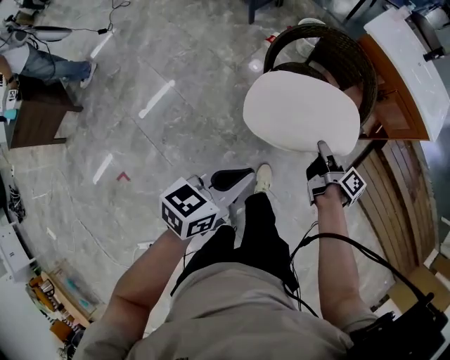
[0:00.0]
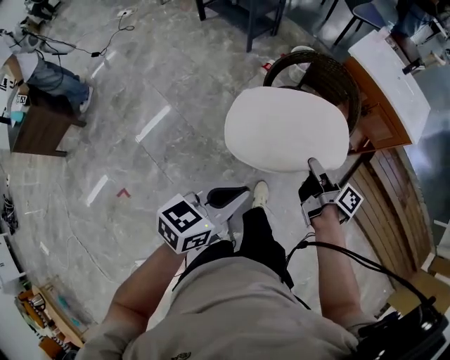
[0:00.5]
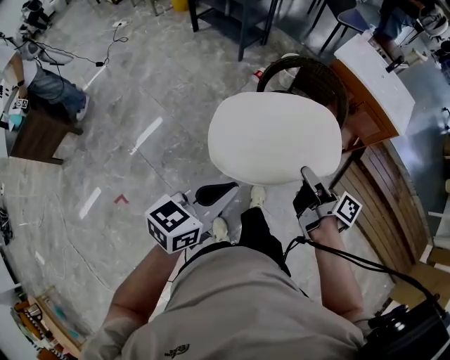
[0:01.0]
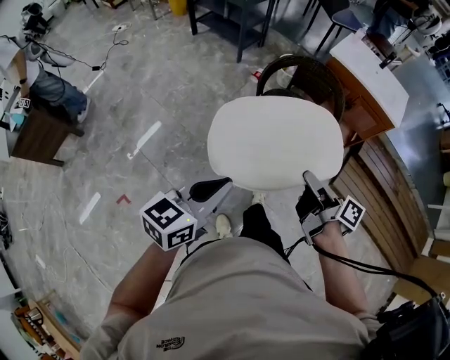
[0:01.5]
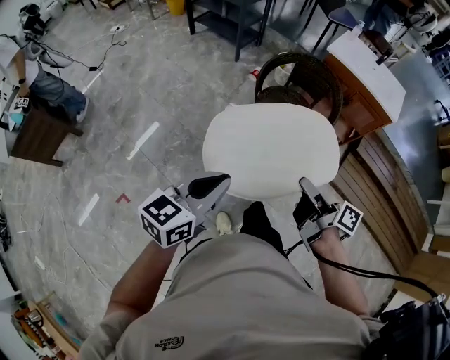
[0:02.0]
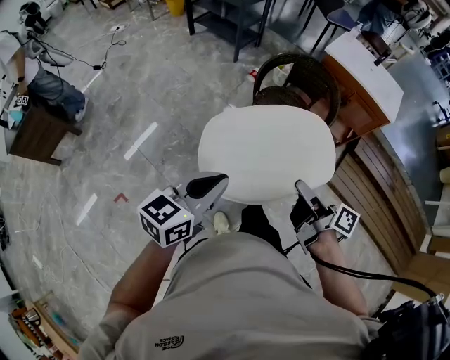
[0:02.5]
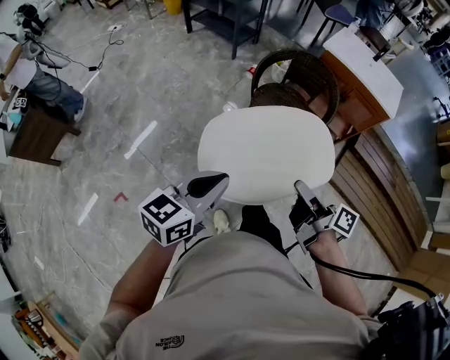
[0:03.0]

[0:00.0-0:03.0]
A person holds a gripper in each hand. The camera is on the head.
0:00.0 to 0:01.5: The right gripper shifts some 35 cm backward and upward. The left gripper travels backward, upward and to the left by roughly 25 cm.
0:01.5 to 0:03.0: The grippers move only a little.

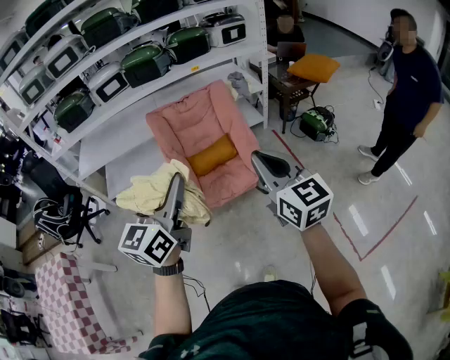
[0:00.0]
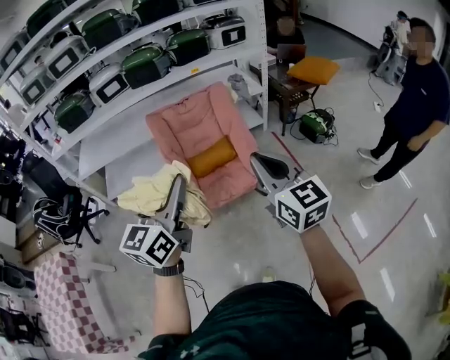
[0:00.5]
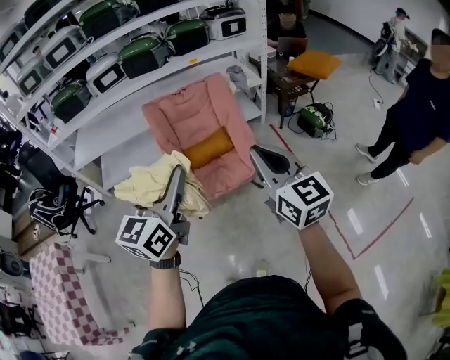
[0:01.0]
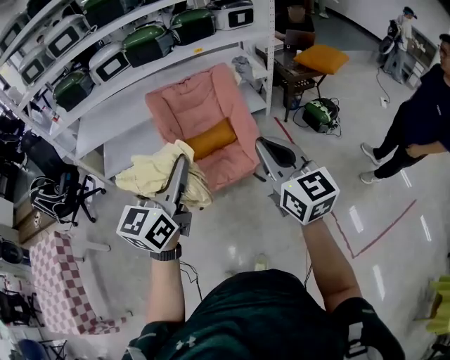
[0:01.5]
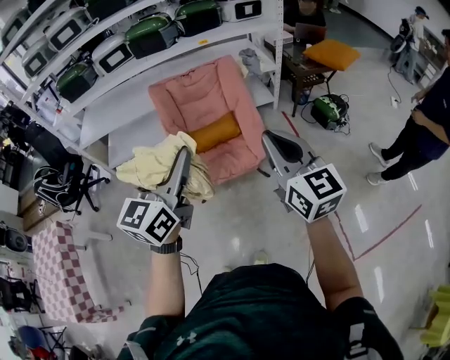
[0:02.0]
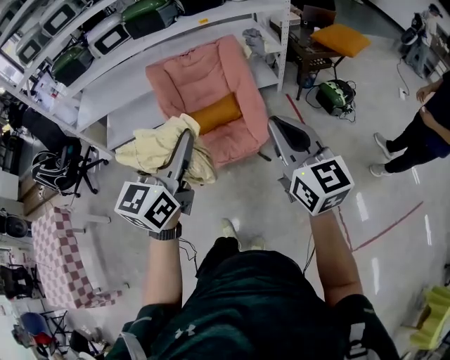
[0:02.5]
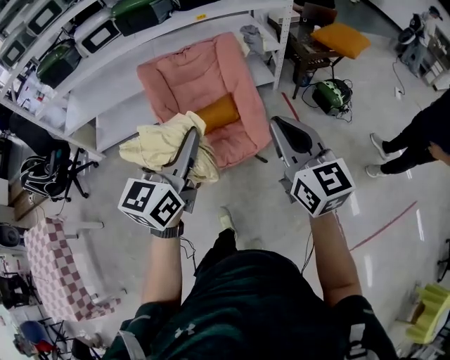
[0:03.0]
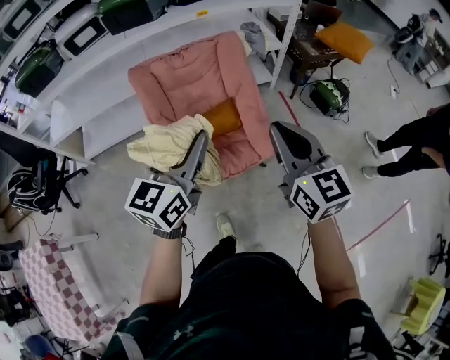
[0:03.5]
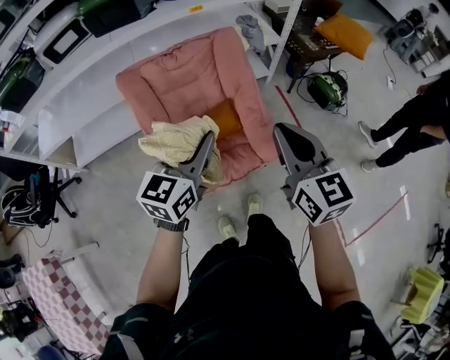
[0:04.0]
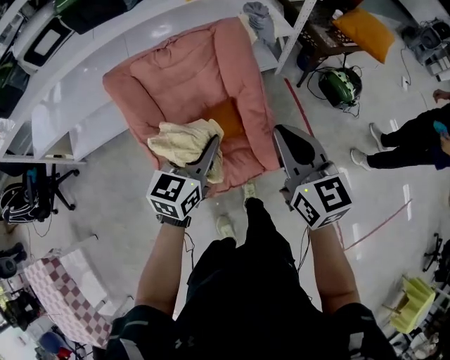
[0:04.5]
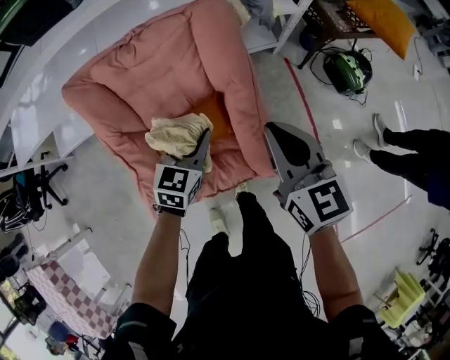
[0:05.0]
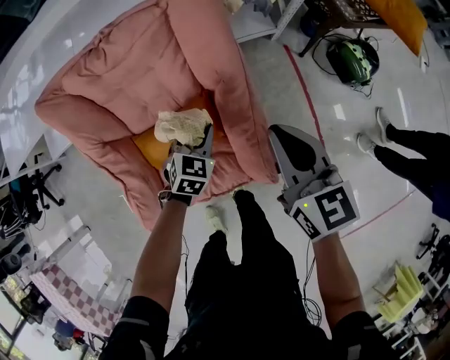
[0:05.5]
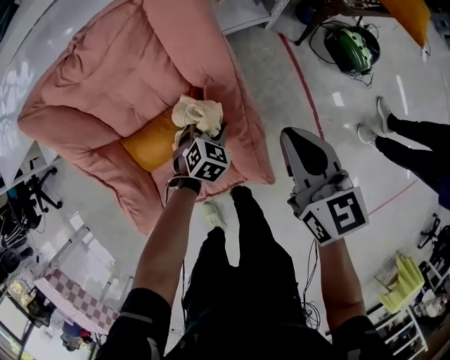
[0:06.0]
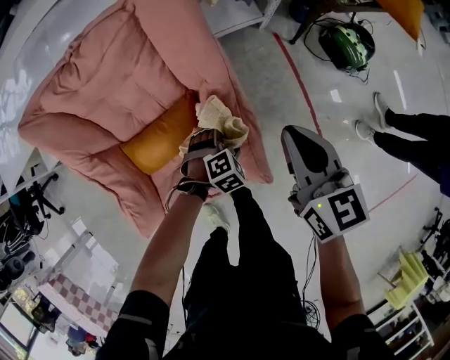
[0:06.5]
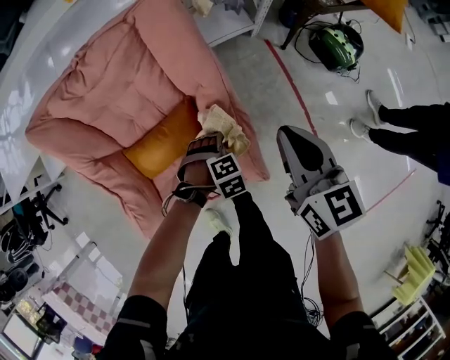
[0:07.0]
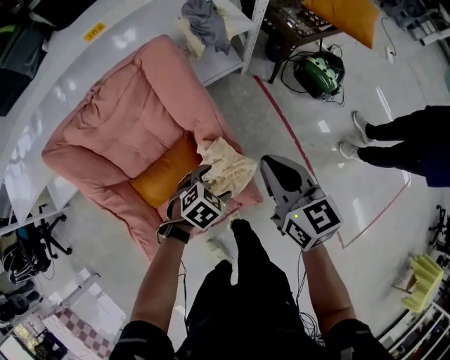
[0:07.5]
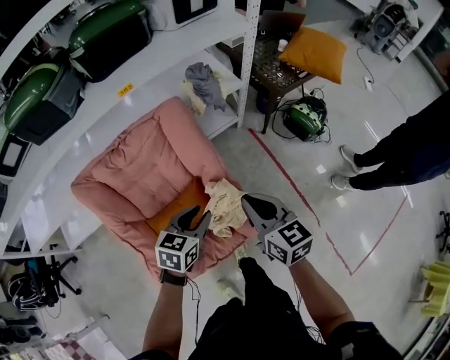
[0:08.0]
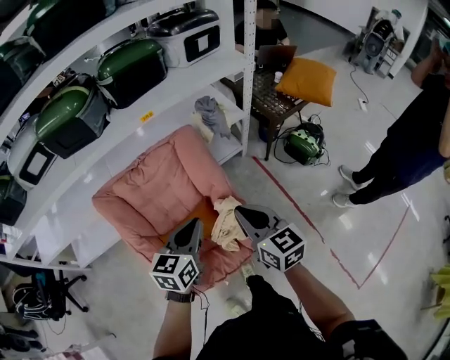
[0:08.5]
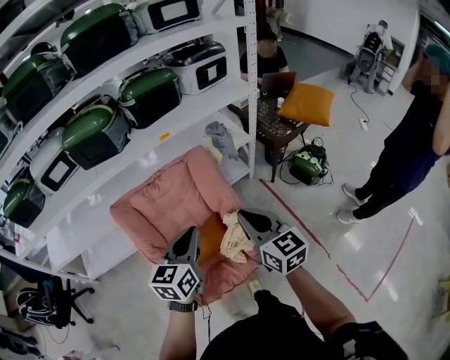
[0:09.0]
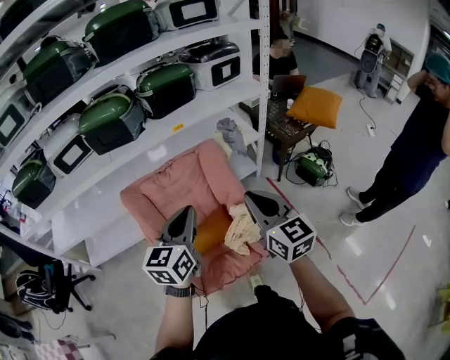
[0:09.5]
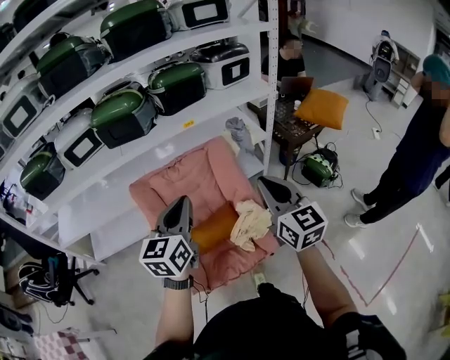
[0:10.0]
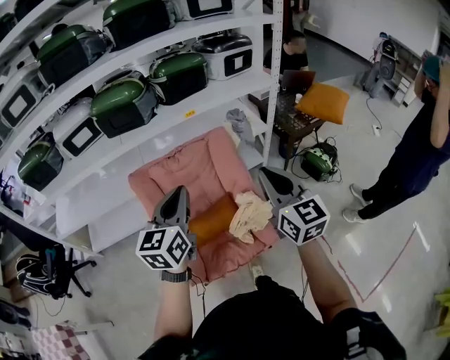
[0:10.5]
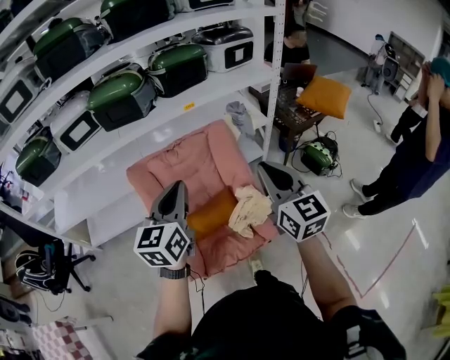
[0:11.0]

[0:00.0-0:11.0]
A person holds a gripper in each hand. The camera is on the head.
0:00.0 to 0:02.0: The two grippers go approximately 5 cm to the right.
0:02.0 to 0:03.5: The two grippers go approximately 25 cm forward.
0:03.5 to 0:05.5: The right gripper travels forward and downward by approximately 50 cm. Meanwhile the left gripper shifts about 60 cm downward and forward, and tips its fingers downward by about 40 degrees.
0:05.5 to 0:07.5: The left gripper reaches roughly 10 cm downward, then returns, rotates roughly 40 degrees, and opens up; the right gripper ends up about 5 cm from where it was.
0:07.5 to 0:09.0: The right gripper goes some 25 cm upward, backward and to the left. The left gripper moves upward, about 40 cm, points its fingers some 50 degrees further upward, and closes its fingers.
0:09.0 to 0:11.0: The left gripper is displaced upward and to the left by some 10 cm. Meanwhile the right gripper travels upward by approximately 10 cm.

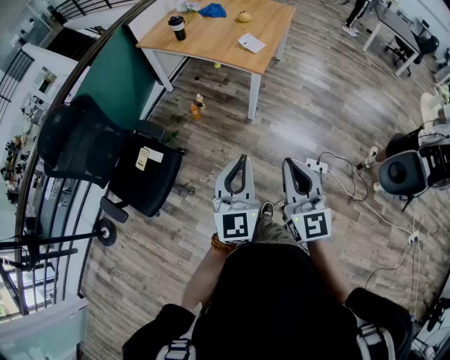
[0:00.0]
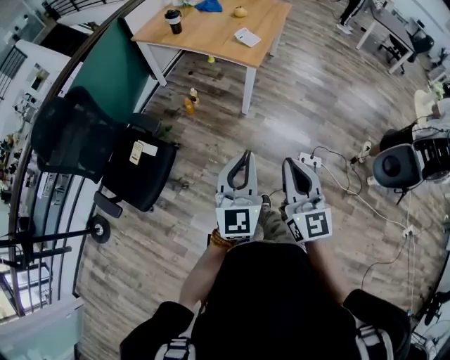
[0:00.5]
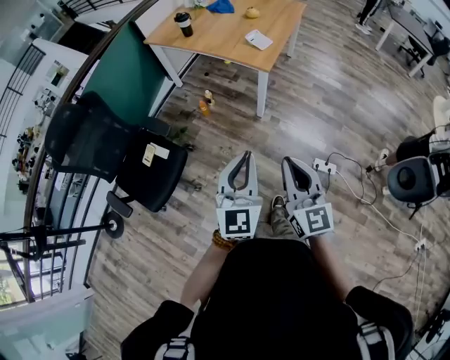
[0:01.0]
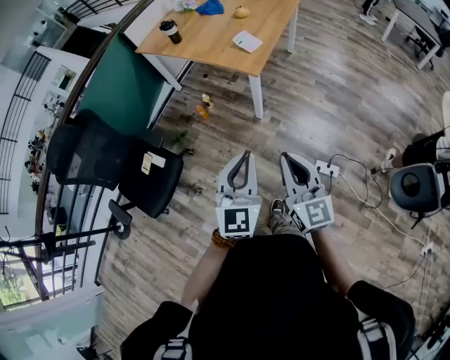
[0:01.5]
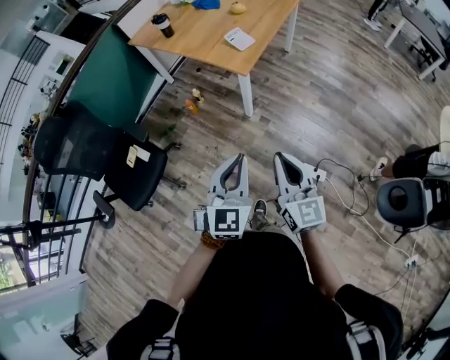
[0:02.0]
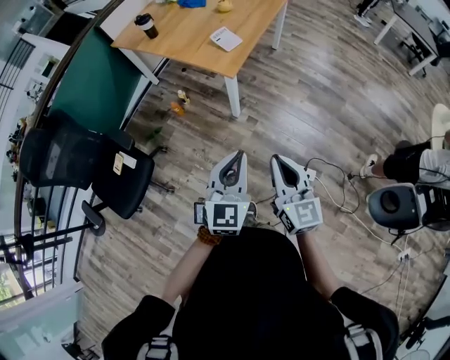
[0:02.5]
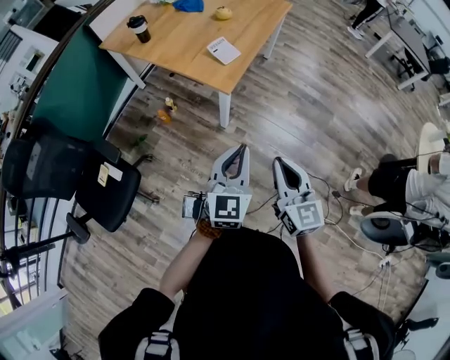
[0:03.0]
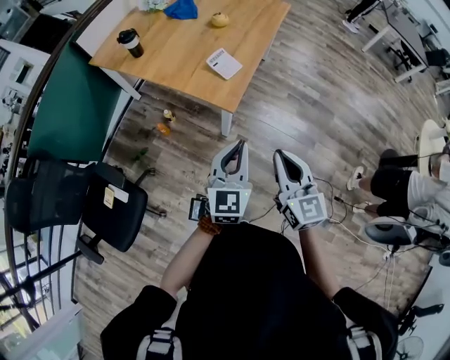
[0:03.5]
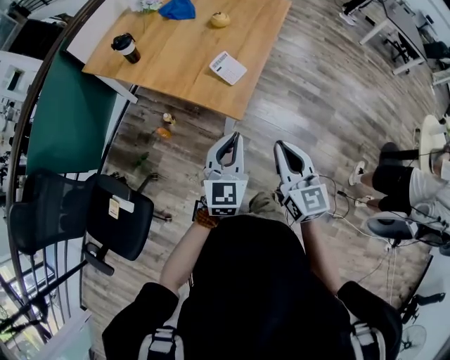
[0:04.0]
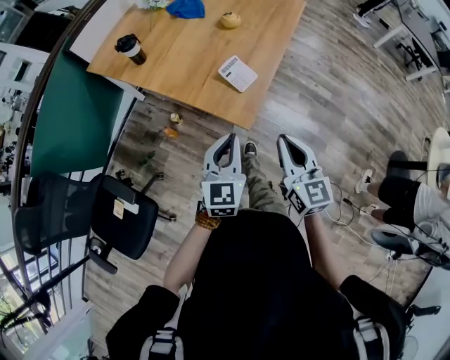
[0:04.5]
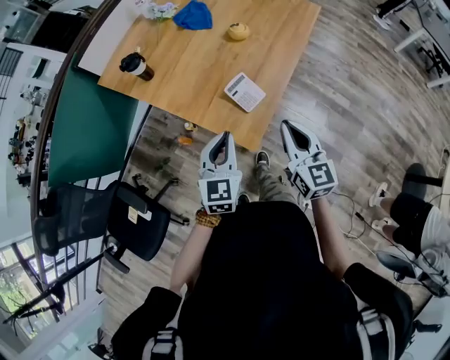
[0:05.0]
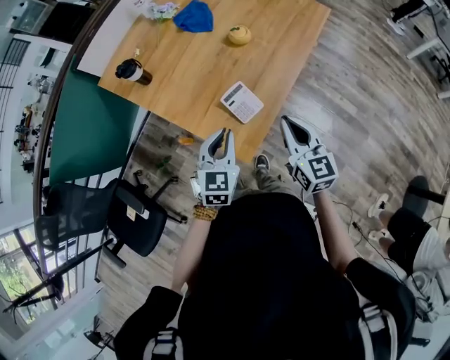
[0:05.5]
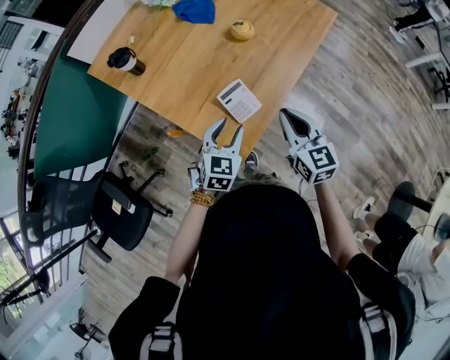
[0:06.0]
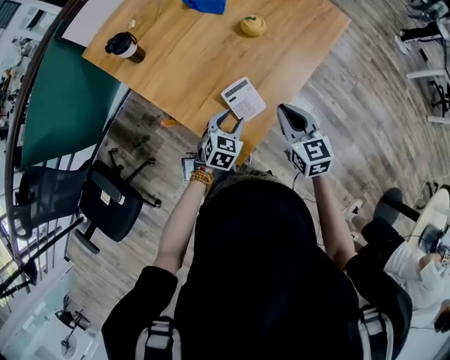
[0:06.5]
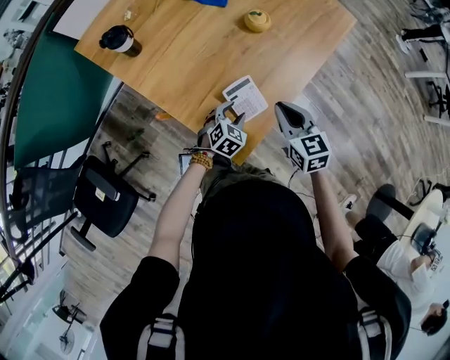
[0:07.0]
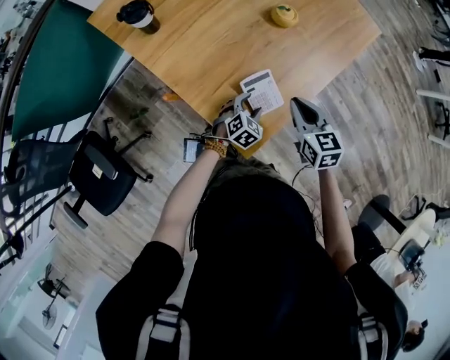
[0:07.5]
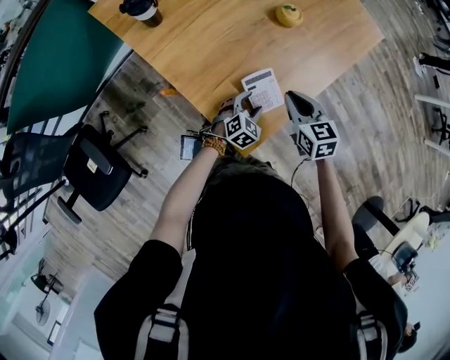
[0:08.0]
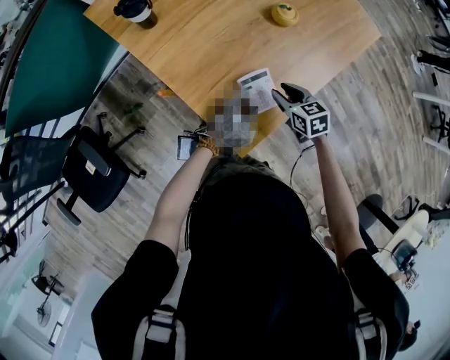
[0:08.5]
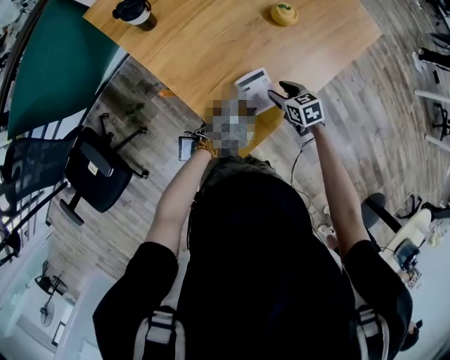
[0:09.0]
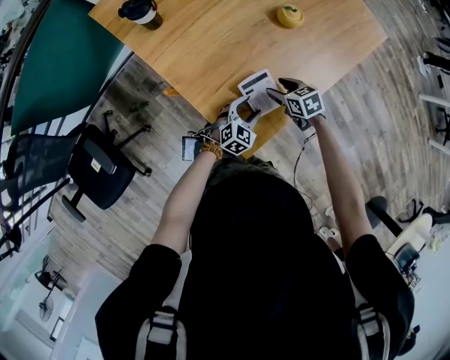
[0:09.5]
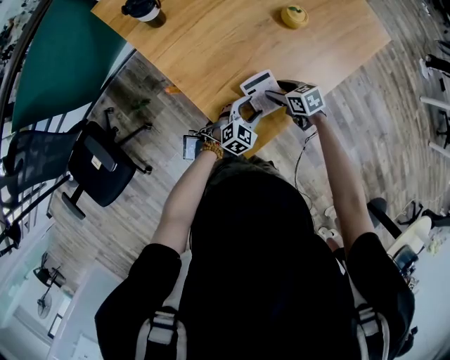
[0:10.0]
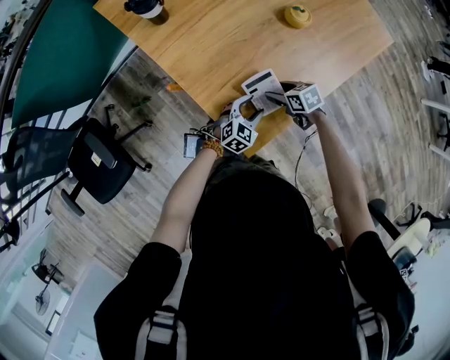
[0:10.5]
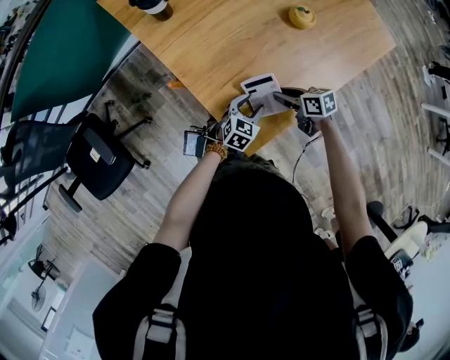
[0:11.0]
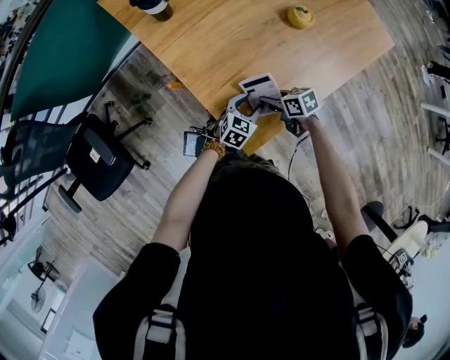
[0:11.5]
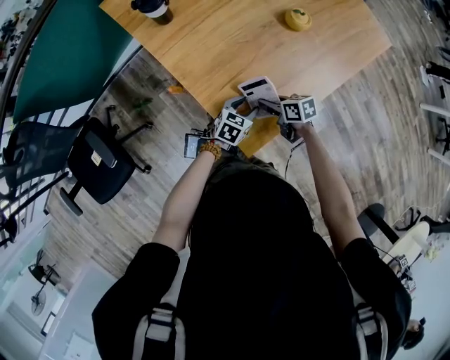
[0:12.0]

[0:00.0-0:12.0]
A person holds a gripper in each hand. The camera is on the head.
0:00.0 to 0:02.0: The two grippers go approximately 20 cm to the right and forward.
0:02.0 to 0:04.0: Both grippers move forward, roughly 35 cm.
0:04.0 to 0:06.0: The left gripper goes roughly 30 cm forward and downward, turns by roughly 20 degrees, and opens up, while the right gripper heads forward, covering some 35 cm.
0:06.0 to 0:08.0: The right gripper is displaced downward, forward and to the left by about 15 cm, and rotates roughly 20 degrees. Meanwhile the left gripper travels downward by approximately 20 cm.
0:08.0 to 0:10.0: The right gripper is displaced downward by roughly 15 cm, changes its angle by roughly 30 degrees, and opens.
0:10.0 to 0:12.0: The right gripper is displaced to the left by about 5 cm, and closes up, while the left gripper rotates approximately 30 degrees.
